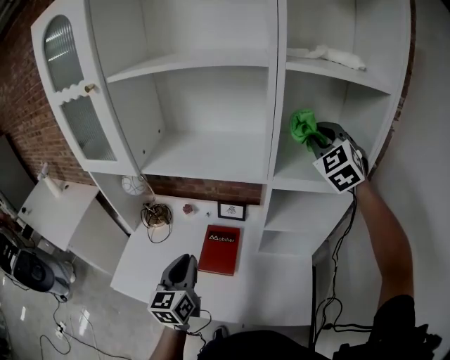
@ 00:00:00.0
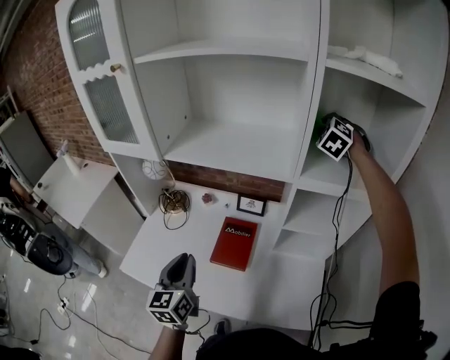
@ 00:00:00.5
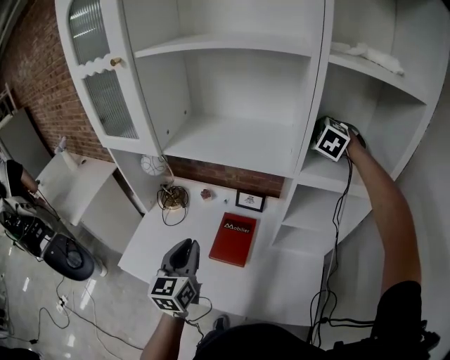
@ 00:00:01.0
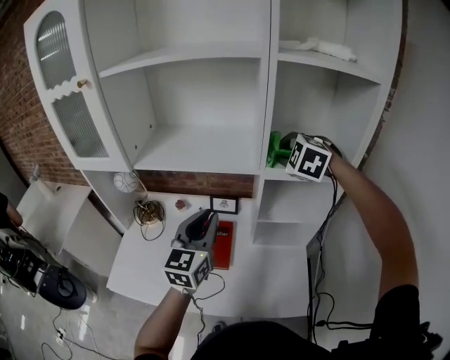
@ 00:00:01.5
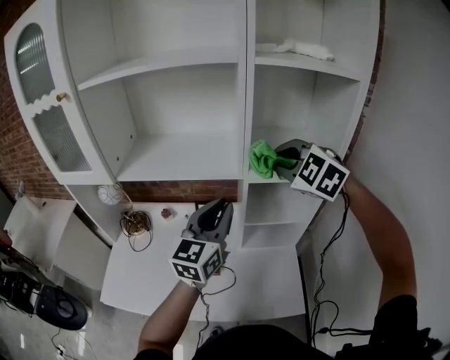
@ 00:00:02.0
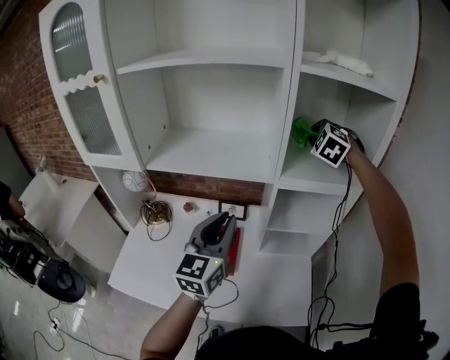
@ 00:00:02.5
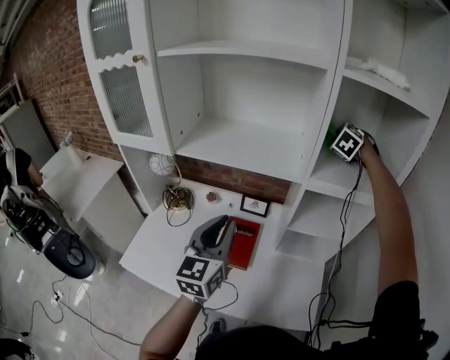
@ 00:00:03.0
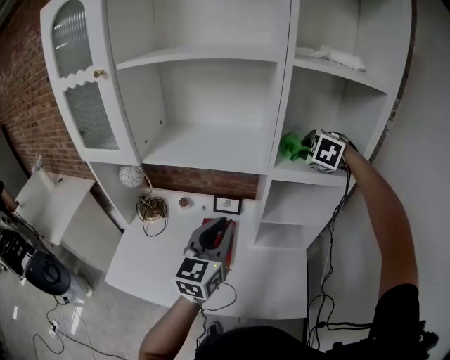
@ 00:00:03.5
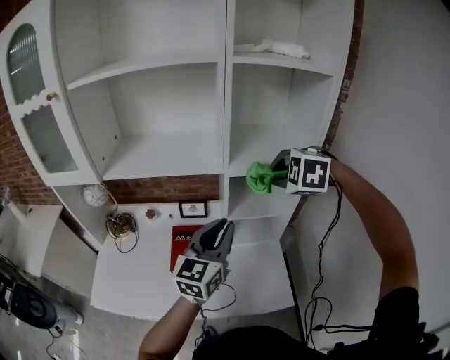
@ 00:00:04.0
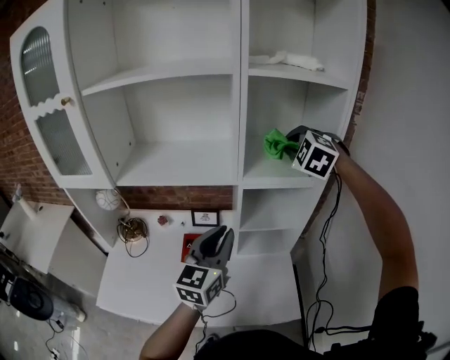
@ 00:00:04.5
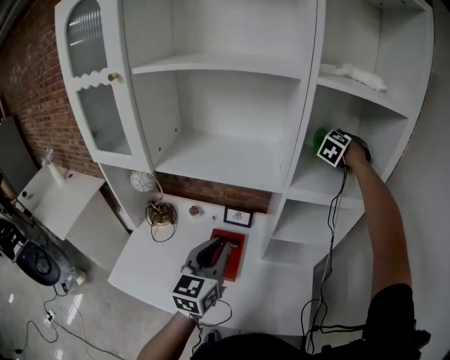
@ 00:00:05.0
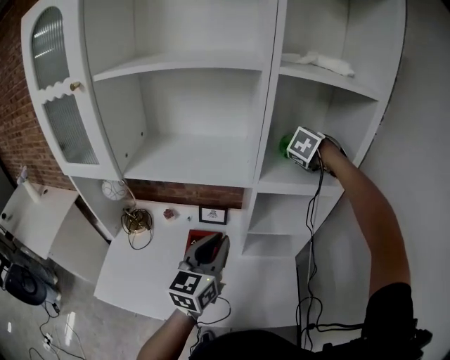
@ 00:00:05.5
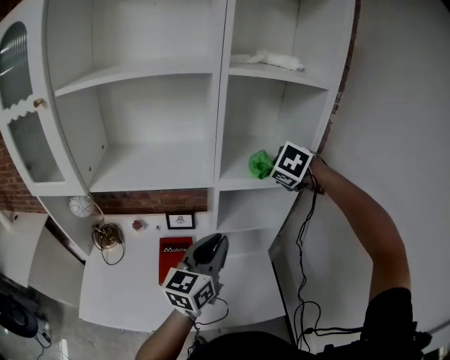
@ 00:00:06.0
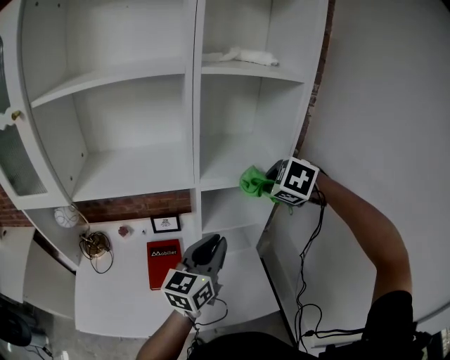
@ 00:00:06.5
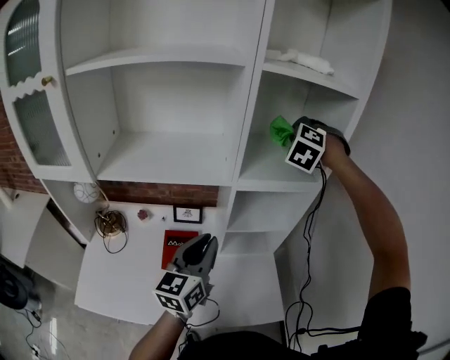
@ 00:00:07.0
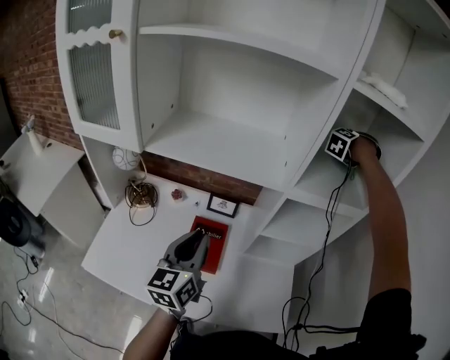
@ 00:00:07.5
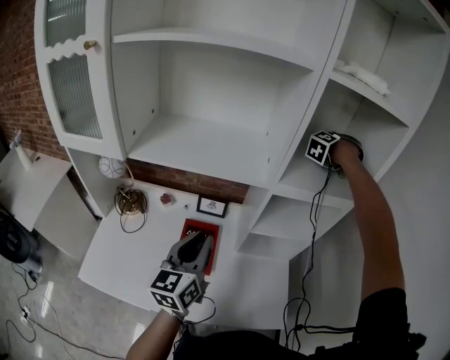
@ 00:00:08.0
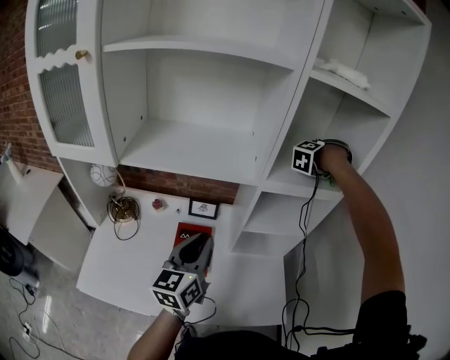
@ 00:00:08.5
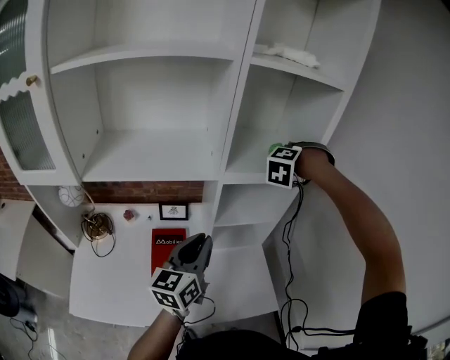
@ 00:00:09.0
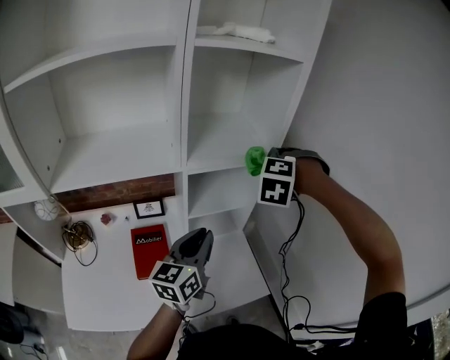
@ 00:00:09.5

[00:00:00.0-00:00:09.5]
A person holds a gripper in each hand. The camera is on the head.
00:00:00.0 to 00:00:02.0: The right gripper heads backward, downward and to the left, covering some 10 cm, and changes its angle by approximately 30 degrees. The left gripper heads to the right, upward and forward, covering approximately 20 cm, and turns by approximately 30 degrees.
00:00:02.0 to 00:00:04.0: The right gripper goes some 10 cm downward and to the right, goes forward and returns, roughly 25 cm each way, and swivels approximately 20 degrees. Meanwhile the left gripper is displaced backward by some 5 cm, and travels to the left and back again, some 10 cm each way.
00:00:04.0 to 00:00:05.5: The left gripper travels to the left by some 5 cm. Meanwhile the right gripper moves forward, roughly 20 cm, and changes its angle by some 30 degrees.
00:00:05.5 to 00:00:07.5: The left gripper goes approximately 10 cm to the left. The right gripper shifts approximately 10 cm forward, and swivels some 30 degrees.
00:00:07.5 to 00:00:09.5: The left gripper travels to the right and forward by some 20 cm, and turns by some 30 degrees, while the right gripper goes approximately 25 cm backward and to the right.

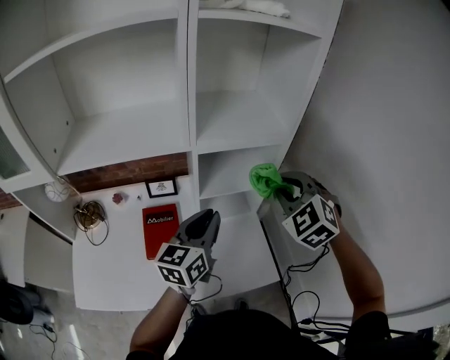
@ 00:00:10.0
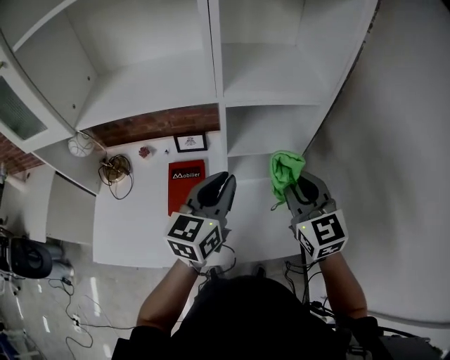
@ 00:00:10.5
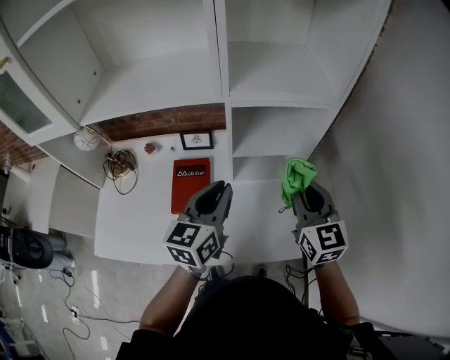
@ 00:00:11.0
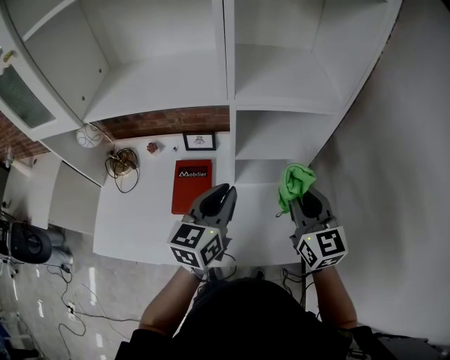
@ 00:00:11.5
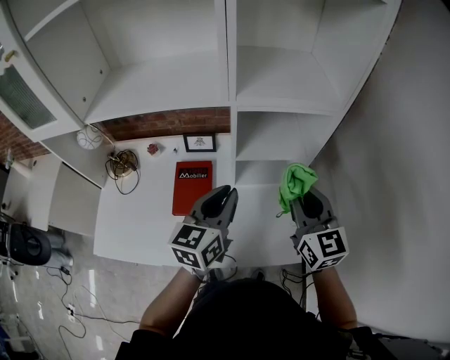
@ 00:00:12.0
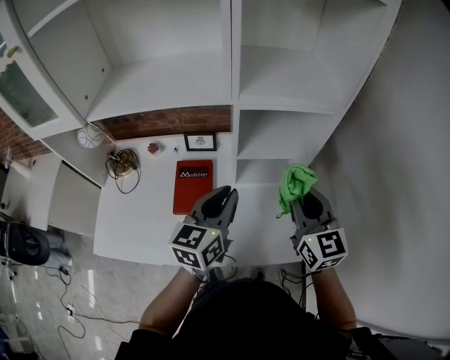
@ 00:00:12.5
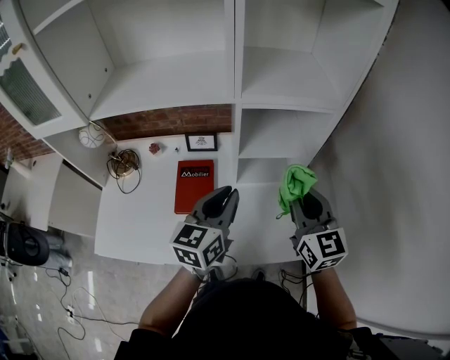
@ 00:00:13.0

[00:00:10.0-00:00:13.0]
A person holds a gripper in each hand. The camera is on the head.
00:00:10.0 to 00:00:11.5: The right gripper shifts some 10 cm downward, and twists roughly 40 degrees clockwise, seen from behind.
00:00:11.5 to 00:00:13.0: The grippers make only small movements.

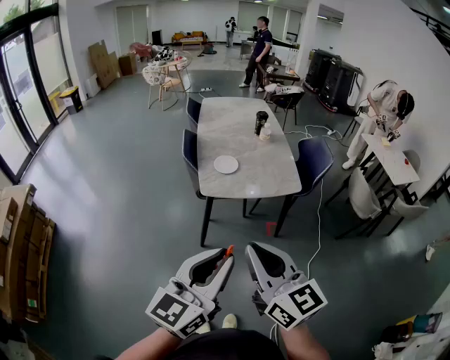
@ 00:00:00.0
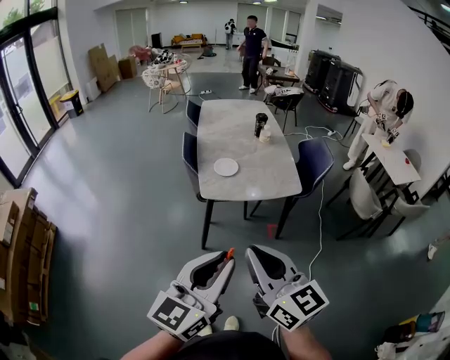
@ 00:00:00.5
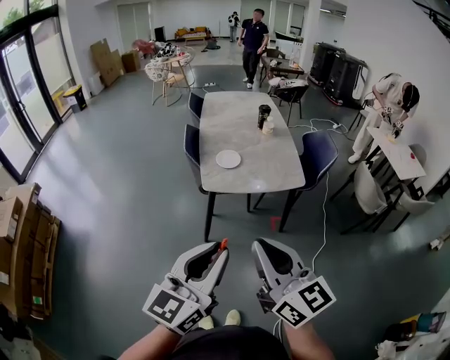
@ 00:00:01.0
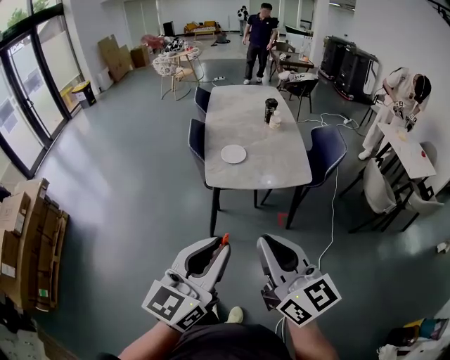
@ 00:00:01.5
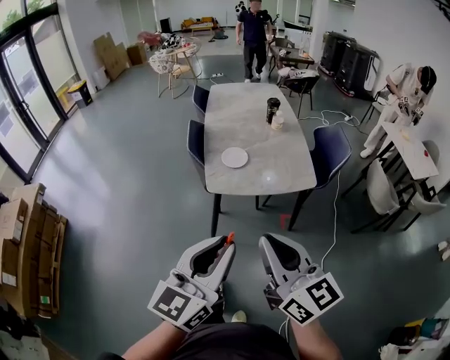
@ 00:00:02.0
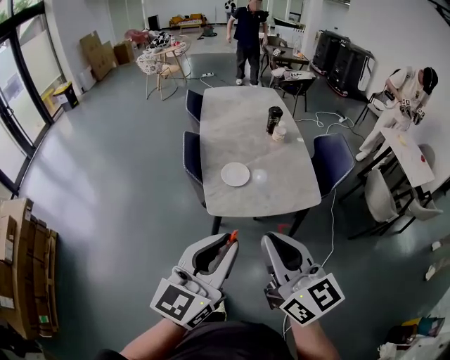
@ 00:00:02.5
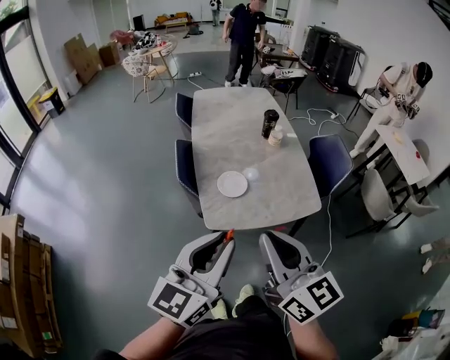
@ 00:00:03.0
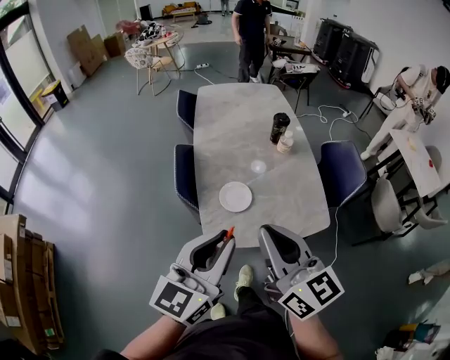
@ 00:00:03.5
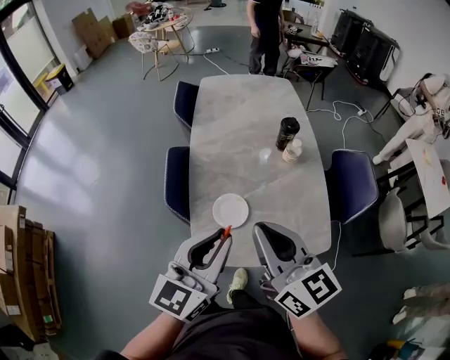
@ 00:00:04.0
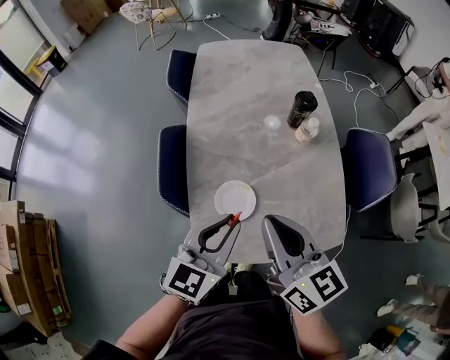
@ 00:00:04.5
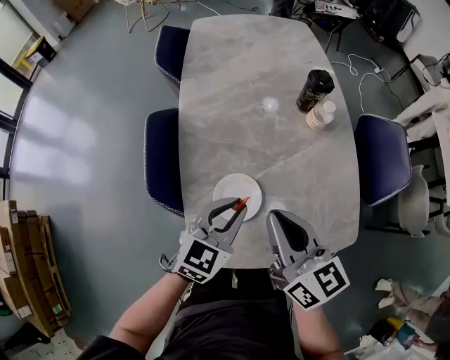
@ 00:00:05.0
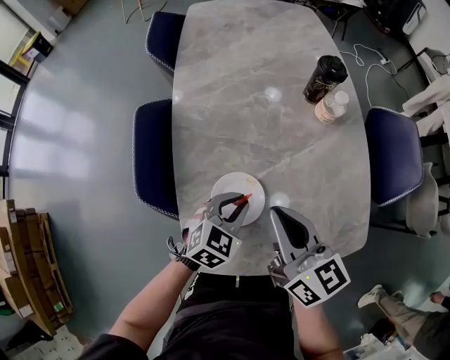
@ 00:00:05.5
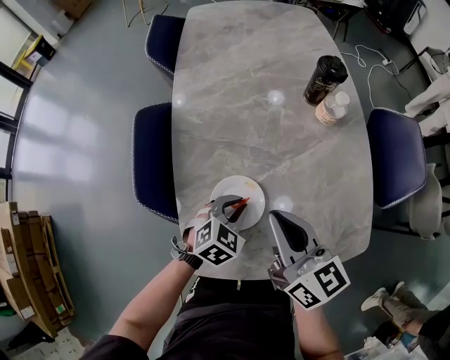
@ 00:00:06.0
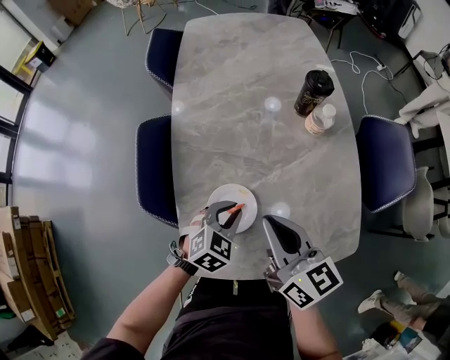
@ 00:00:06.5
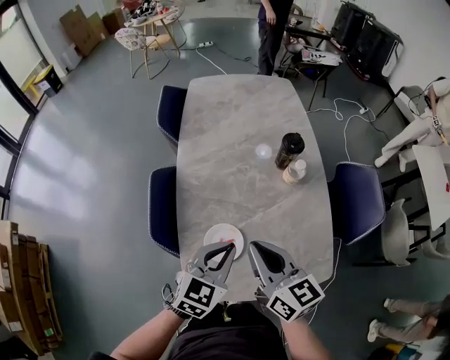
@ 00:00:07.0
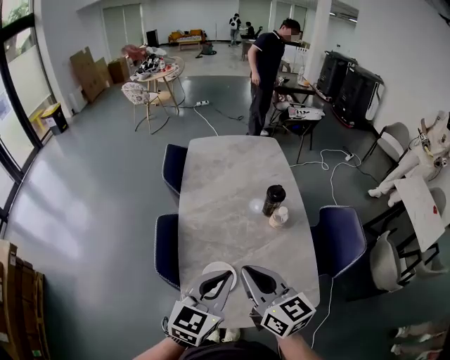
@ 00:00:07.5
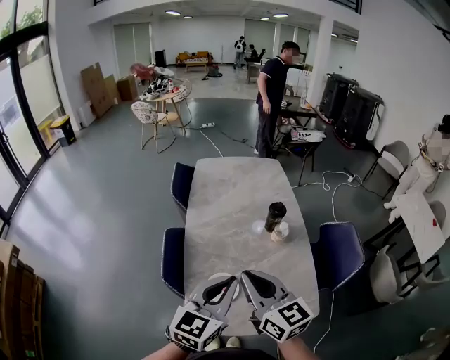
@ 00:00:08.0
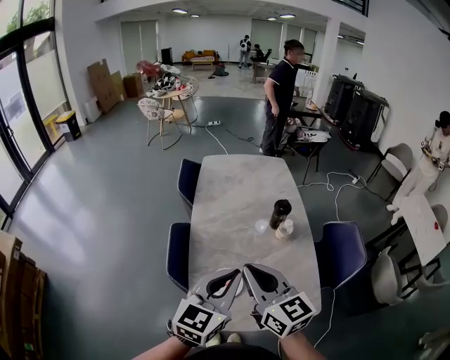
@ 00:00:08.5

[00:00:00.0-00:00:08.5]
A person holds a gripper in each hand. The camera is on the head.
00:00:00.0 to 00:00:02.0: Both grippers travel together forward, roughly 10 cm.
00:00:02.0 to 00:00:04.0: The pair of grippers is taken forward, roughly 50 cm.
00:00:04.0 to 00:00:06.5: The two grippers go approximately 35 cm downward and forward. The left gripper tilts its fingers approximately 40 degrees downward.
00:00:06.5 to 00:00:08.5: The left gripper moves upward, roughly 40 cm, and tilts its fingers roughly 40 degrees upward. Meanwhile the right gripper goes some 25 cm upward.

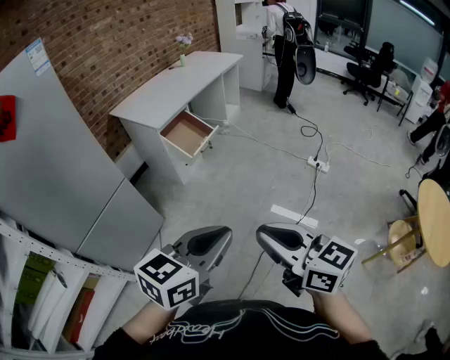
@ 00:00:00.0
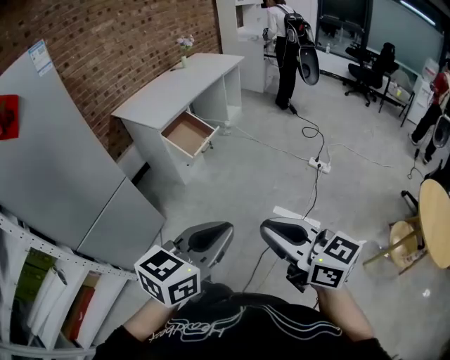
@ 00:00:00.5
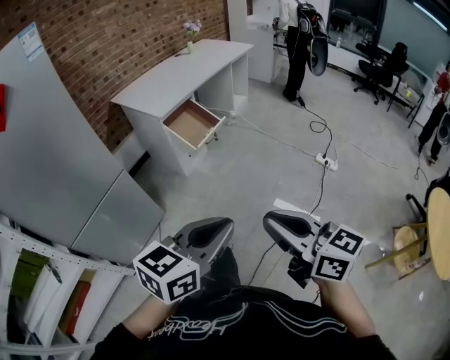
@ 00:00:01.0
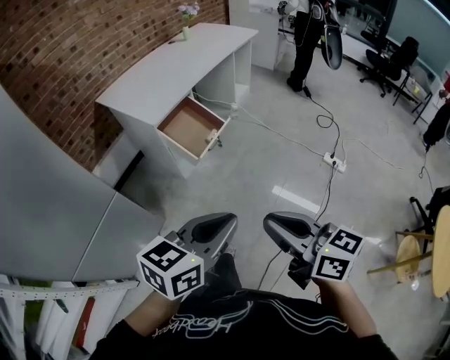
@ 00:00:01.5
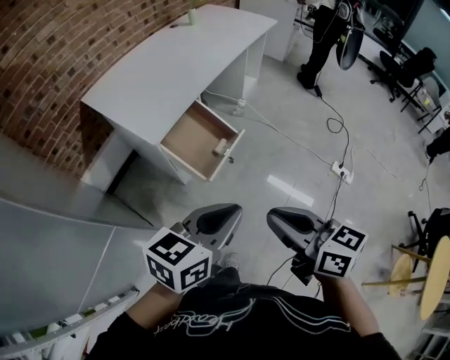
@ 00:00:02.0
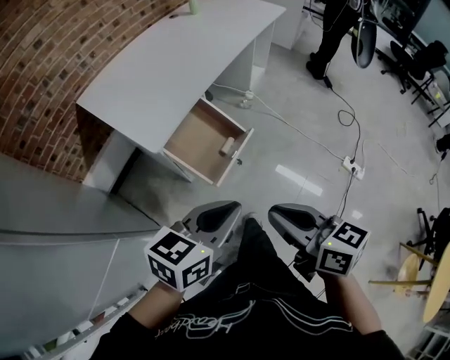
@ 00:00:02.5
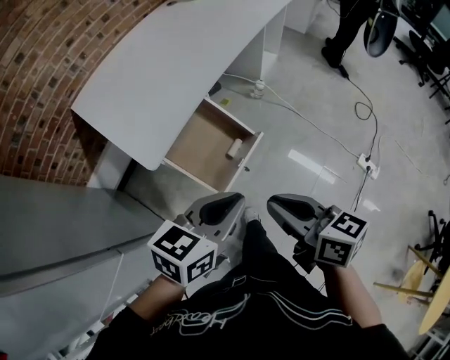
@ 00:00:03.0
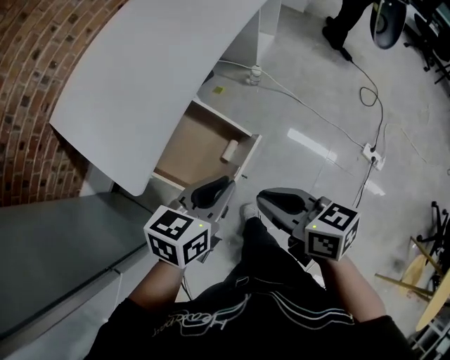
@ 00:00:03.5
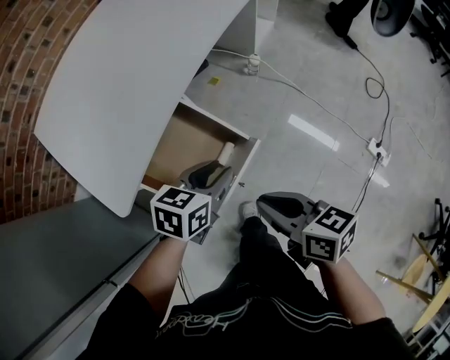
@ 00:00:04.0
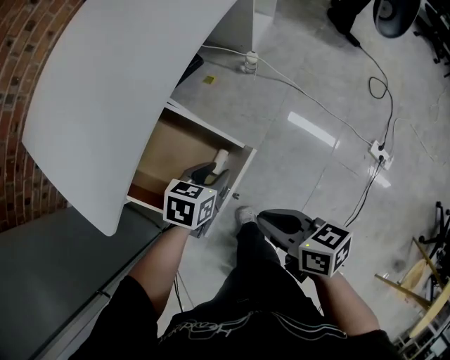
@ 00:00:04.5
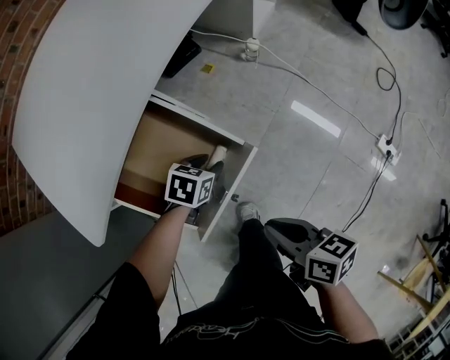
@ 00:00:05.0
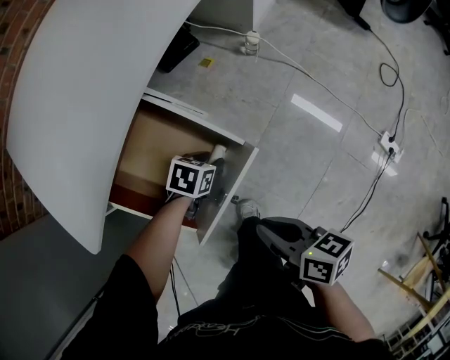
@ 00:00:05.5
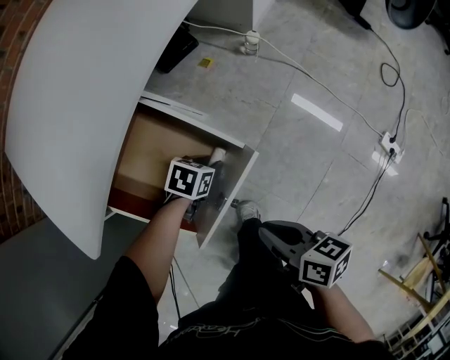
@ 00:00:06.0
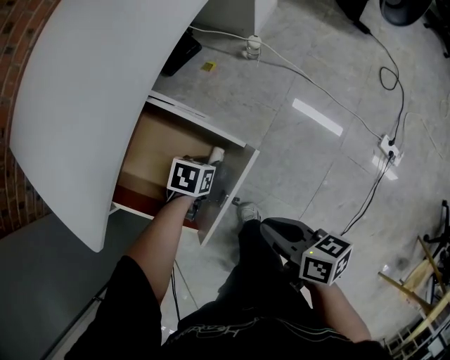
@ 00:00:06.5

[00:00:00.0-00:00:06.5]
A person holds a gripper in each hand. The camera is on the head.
00:00:00.0 to 00:00:02.0: The two grippers travel together, forward, some 60 cm.
00:00:02.0 to 00:00:04.5: The two grippers go roughly 50 cm forward and downward. The left gripper points its fingers about 30 degrees further downward, and opens, while the right gripper changes its angle by some 30 degrees.
00:00:04.5 to 00:00:06.5: The right gripper moves downward, about 10 cm; the left gripper heads downward, covering roughly 15 cm.
